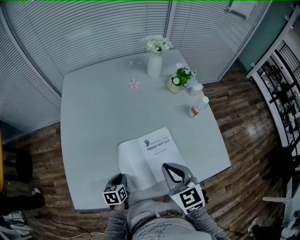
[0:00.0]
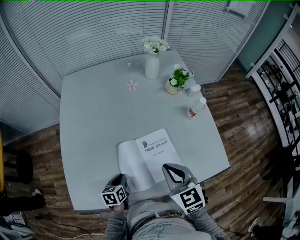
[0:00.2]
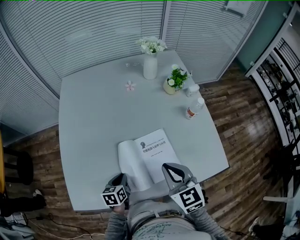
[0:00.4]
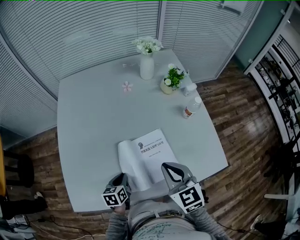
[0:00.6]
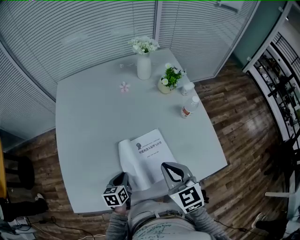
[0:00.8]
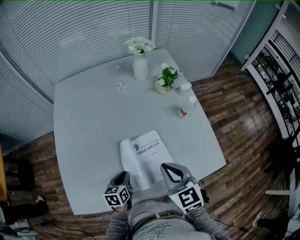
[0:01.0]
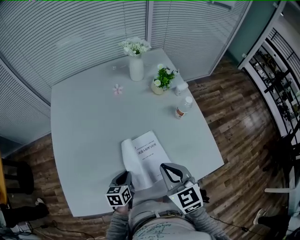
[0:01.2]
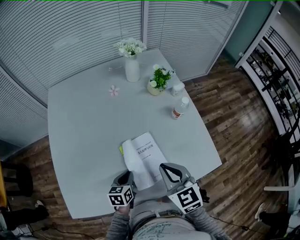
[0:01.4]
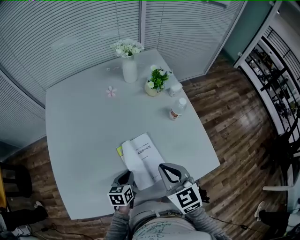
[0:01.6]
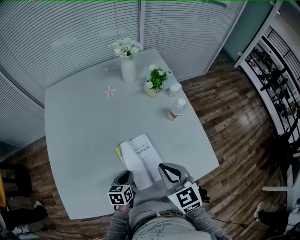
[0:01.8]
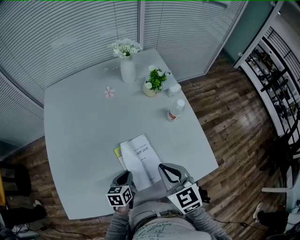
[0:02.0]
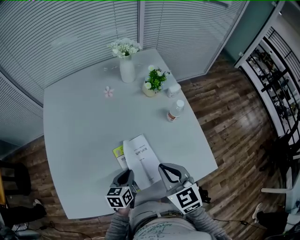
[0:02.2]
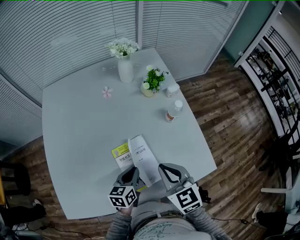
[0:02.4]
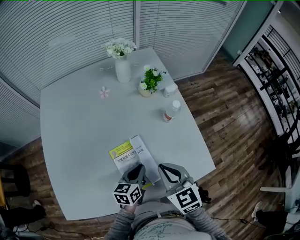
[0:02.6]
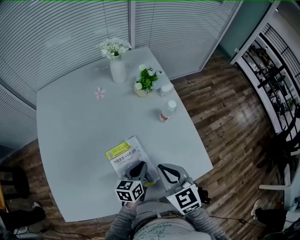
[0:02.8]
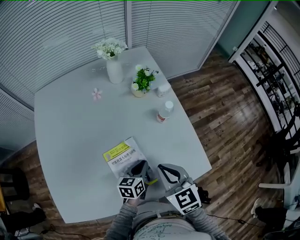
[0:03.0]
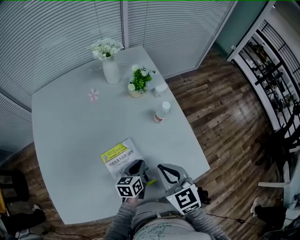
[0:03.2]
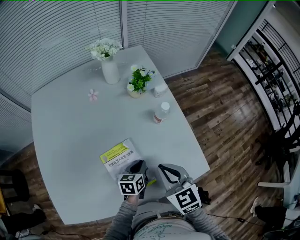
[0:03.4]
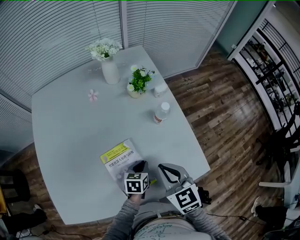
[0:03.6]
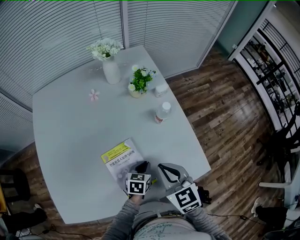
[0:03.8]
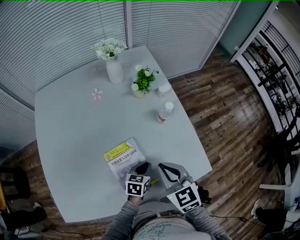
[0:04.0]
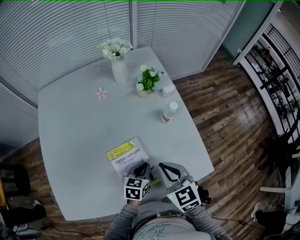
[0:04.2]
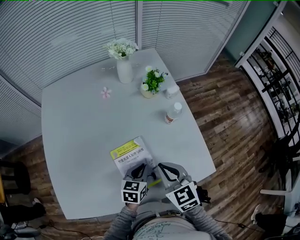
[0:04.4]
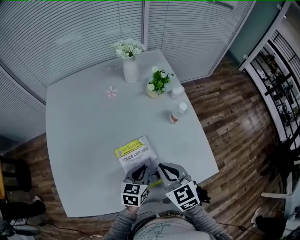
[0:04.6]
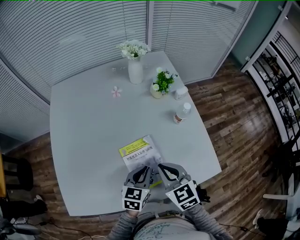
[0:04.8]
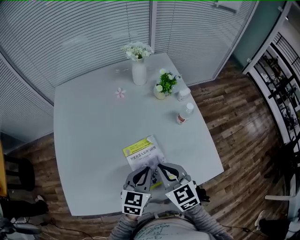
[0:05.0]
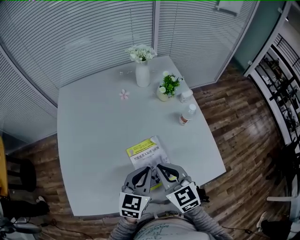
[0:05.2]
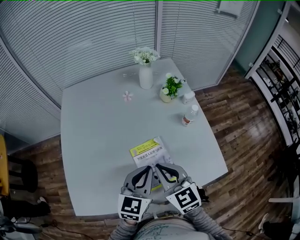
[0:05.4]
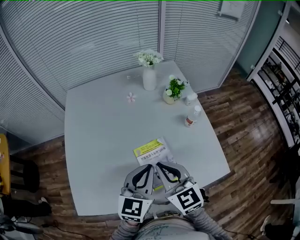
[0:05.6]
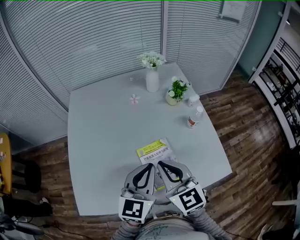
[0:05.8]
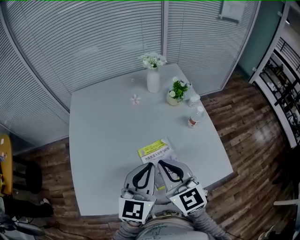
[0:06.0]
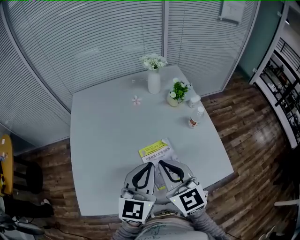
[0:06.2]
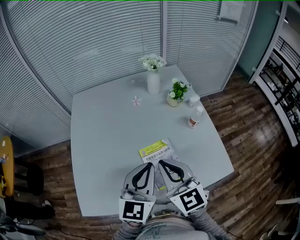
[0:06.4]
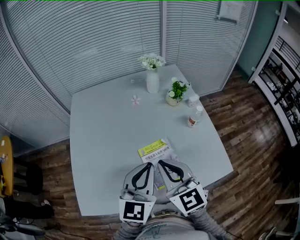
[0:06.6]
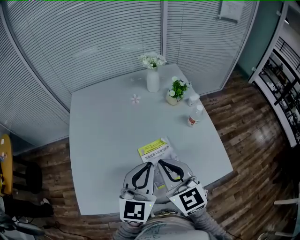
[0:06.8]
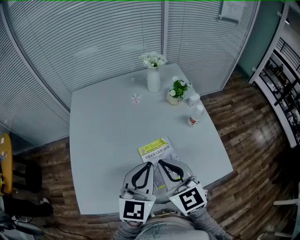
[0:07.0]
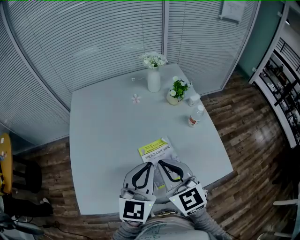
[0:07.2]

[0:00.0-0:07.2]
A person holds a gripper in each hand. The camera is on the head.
0.0 to 1.4 s: The left gripper shifts approximately 15 cm to the right. Meanwhile the right gripper travels to the right by some 10 cm.
1.4 to 2.8 s: The left gripper shifts about 15 cm to the right and forward. The right gripper shifts approximately 5 cm to the right.
4.4 to 5.8 s: The right gripper heads to the left and upward, covering some 15 cm. Meanwhile the left gripper heads upward and to the left, covering approximately 25 cm, and turns by approximately 30 degrees.
5.8 to 7.2 s: The grippers move only a little.

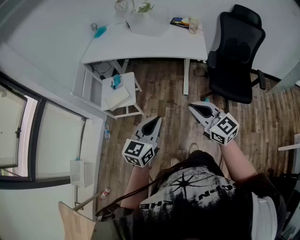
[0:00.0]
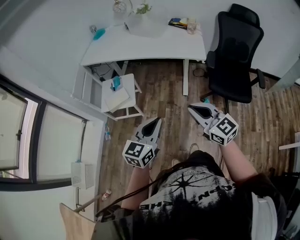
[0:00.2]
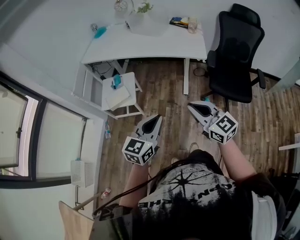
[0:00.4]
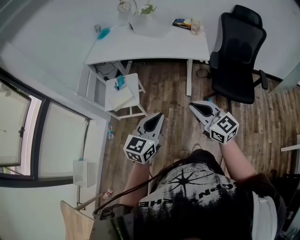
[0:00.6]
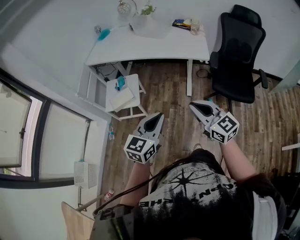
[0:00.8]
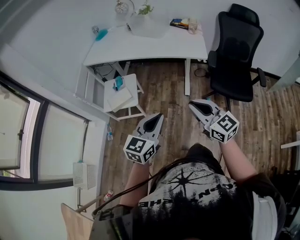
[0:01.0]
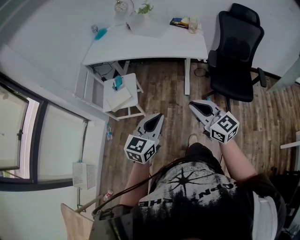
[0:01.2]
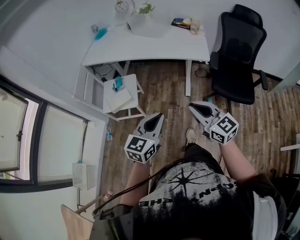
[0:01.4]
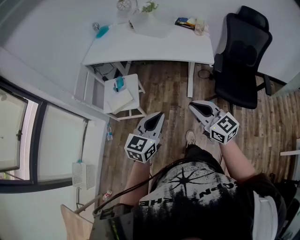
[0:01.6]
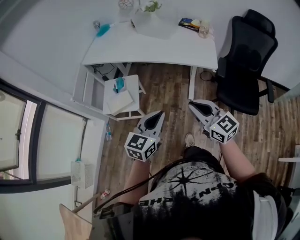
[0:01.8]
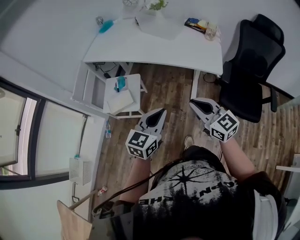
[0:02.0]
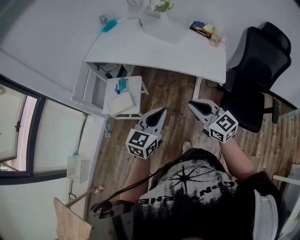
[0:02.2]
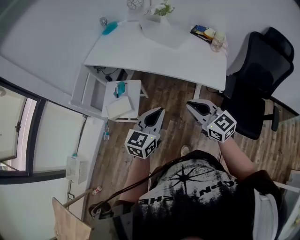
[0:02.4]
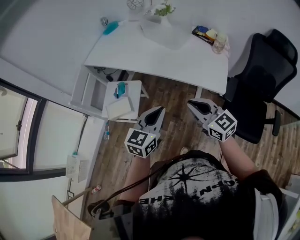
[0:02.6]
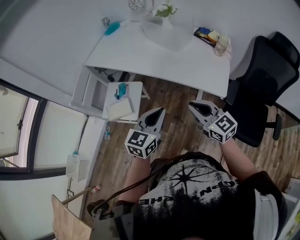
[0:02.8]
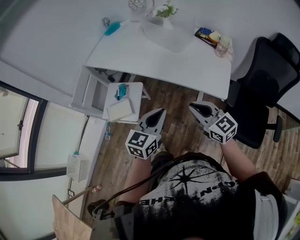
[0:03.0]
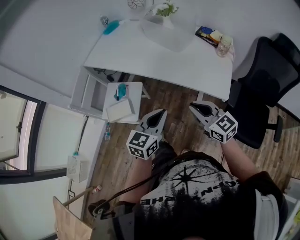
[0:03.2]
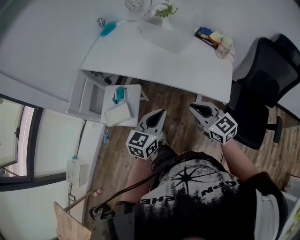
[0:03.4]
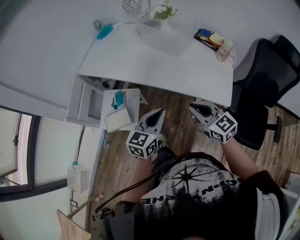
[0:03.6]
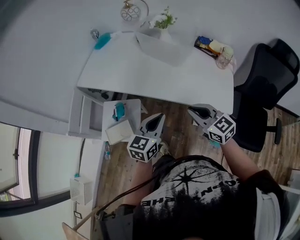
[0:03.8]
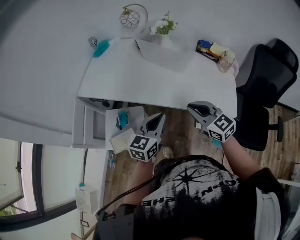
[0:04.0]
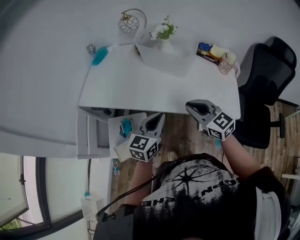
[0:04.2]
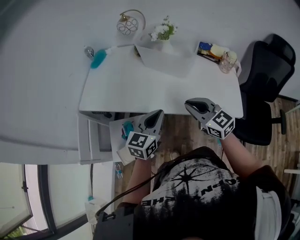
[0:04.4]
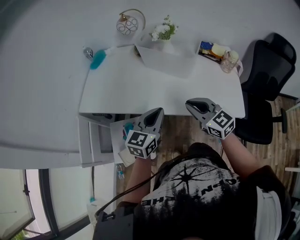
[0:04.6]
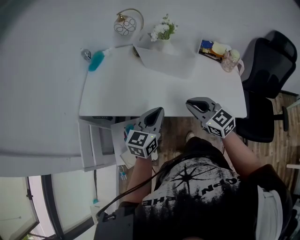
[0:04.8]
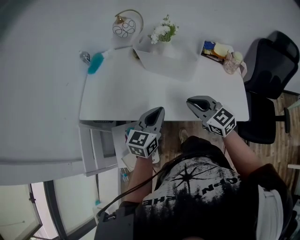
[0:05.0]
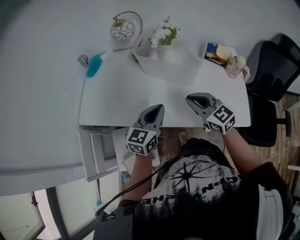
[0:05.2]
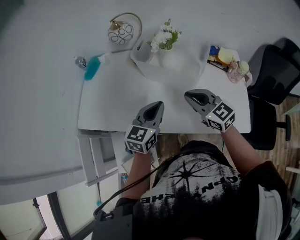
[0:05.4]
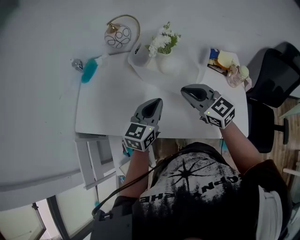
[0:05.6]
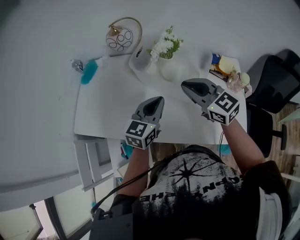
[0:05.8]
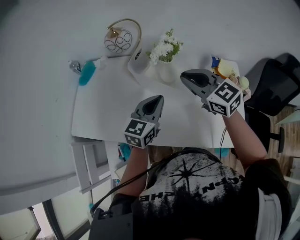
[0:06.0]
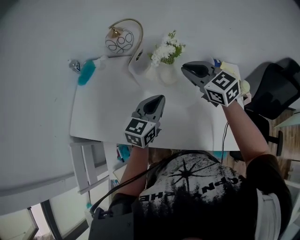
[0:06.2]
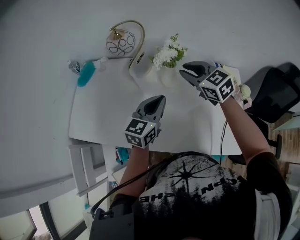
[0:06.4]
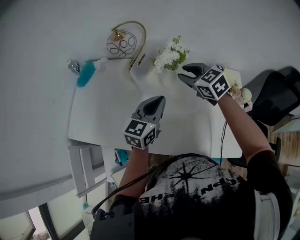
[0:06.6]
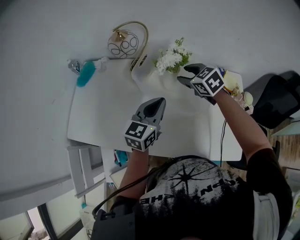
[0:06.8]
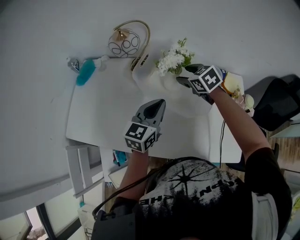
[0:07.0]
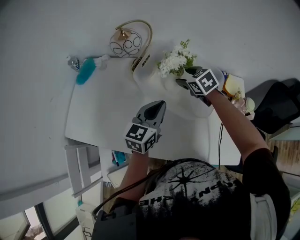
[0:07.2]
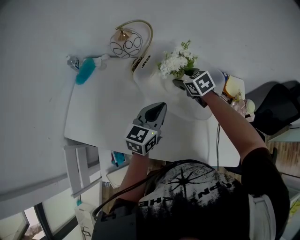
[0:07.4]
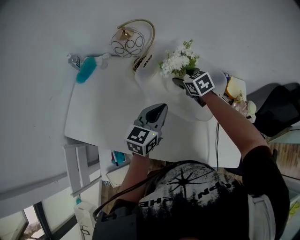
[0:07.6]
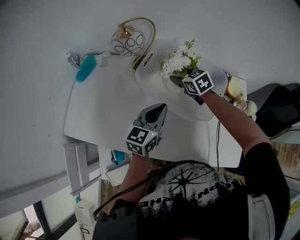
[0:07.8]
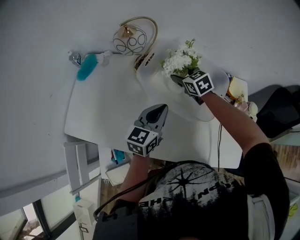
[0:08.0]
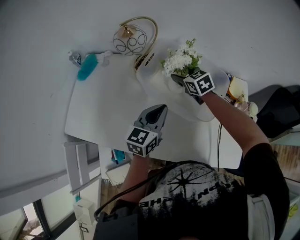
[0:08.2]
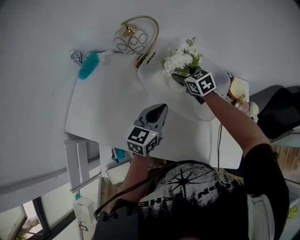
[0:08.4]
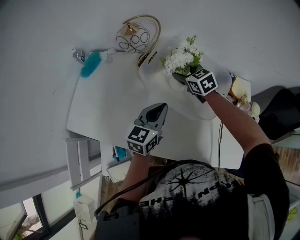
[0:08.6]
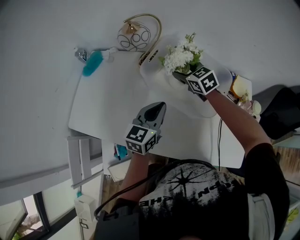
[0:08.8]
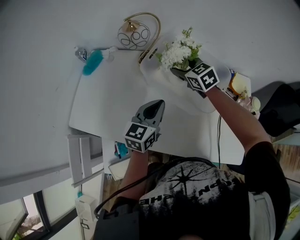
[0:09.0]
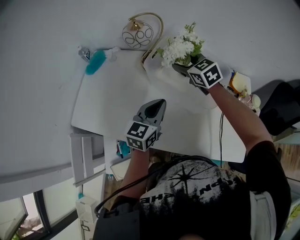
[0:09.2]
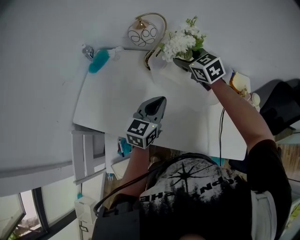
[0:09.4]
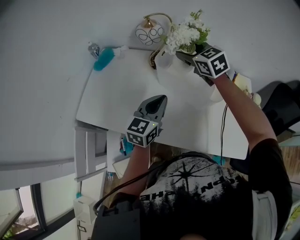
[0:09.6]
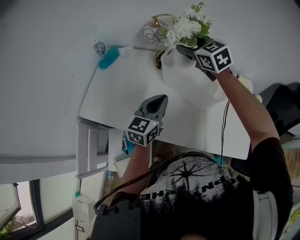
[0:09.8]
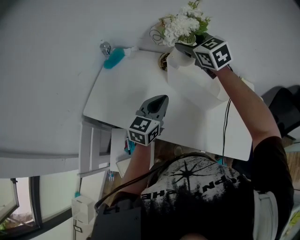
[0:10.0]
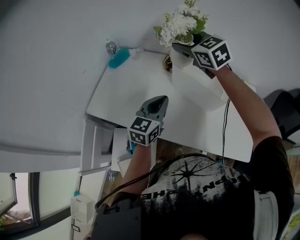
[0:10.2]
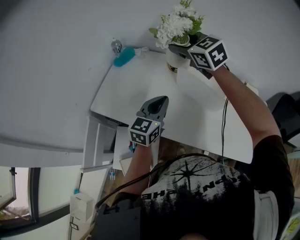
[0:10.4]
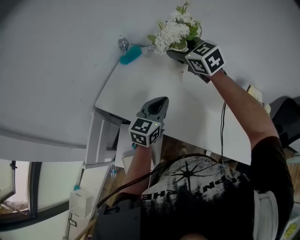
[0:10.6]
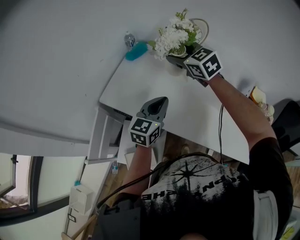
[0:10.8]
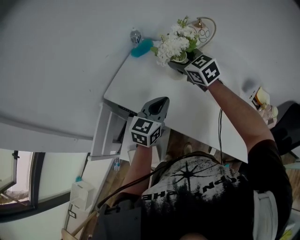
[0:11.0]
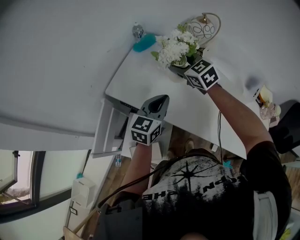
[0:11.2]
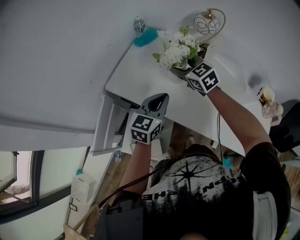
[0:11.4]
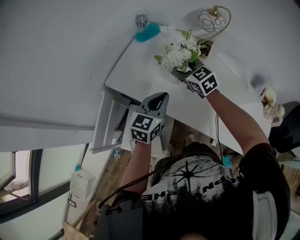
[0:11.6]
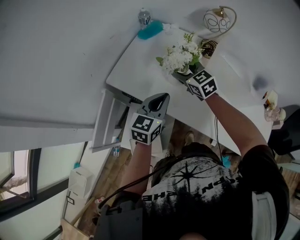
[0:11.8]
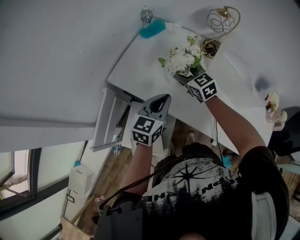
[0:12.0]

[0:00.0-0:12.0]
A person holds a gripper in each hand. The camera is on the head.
0.0 to 1.6 s: The two grippers go some 5 cm forward.
1.6 to 3.0 s: The left gripper heads forward and to the right, covering roughly 25 cm; the right gripper travels forward by approximately 25 cm.
3.0 to 4.4 s: The two grippers go some 25 cm forward and to the left.
4.4 to 6.0 s: Both grippers move forward, approximately 25 cm.
6.0 to 7.6 s: The left gripper shifts approximately 5 cm forward; the right gripper moves downward and forward, approximately 25 cm, turns by about 30 degrees, and opens.
7.6 to 9.0 s: The right gripper is displaced upward by approximately 5 cm.
9.0 to 10.4 s: The left gripper heads to the left, backward and upward, covering approximately 15 cm; the right gripper shifts roughly 30 cm upward and to the left.
10.4 to 12.0 s: The right gripper heads downward and to the left, covering approximately 30 cm. The left gripper shifts some 15 cm to the left and downward.

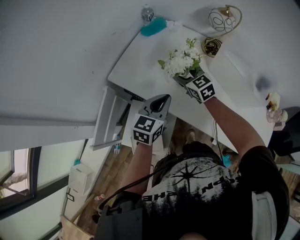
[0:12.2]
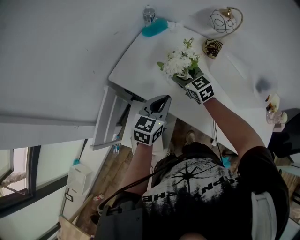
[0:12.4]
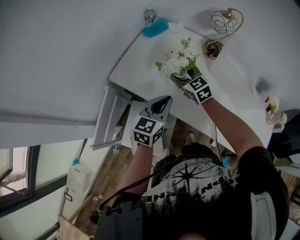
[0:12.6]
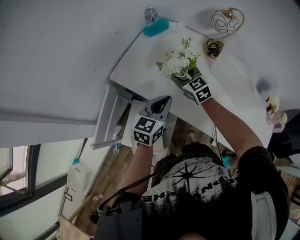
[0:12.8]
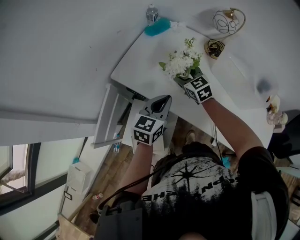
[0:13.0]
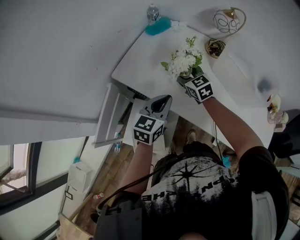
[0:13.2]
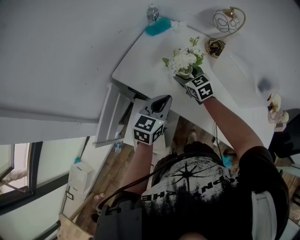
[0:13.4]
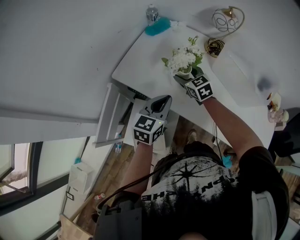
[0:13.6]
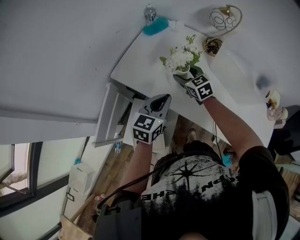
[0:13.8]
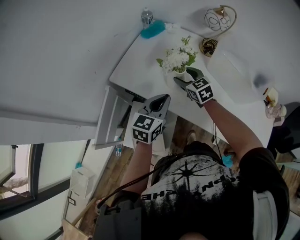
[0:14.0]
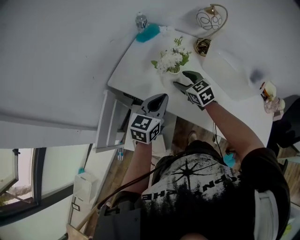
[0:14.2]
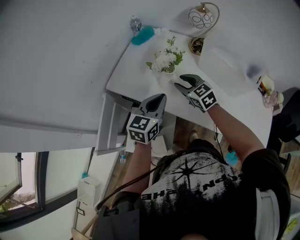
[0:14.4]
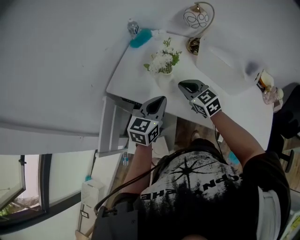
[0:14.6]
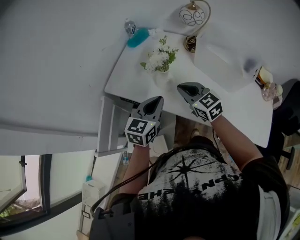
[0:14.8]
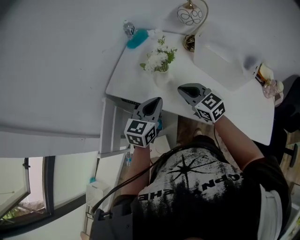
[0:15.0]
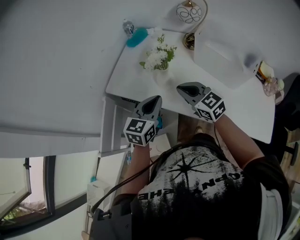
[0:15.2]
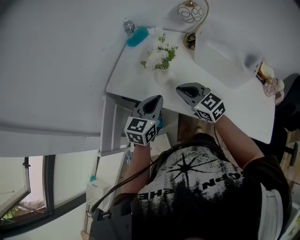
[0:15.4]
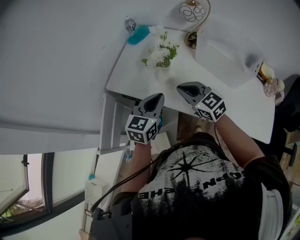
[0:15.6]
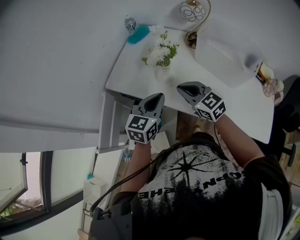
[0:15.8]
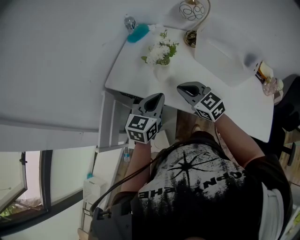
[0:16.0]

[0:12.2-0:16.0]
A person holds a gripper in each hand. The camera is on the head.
12.2 to 13.4 s: The grippers make only small movements.
13.4 to 14.8 s: The right gripper travels backward, upward and to the right by about 15 cm, and closes its fingers. Meanwhile the left gripper ends up some 5 cm from where it was.
14.8 to 16.0 s: The grippers move only a little.

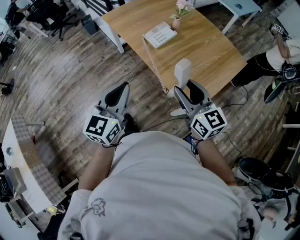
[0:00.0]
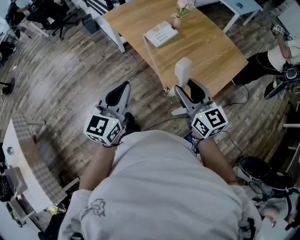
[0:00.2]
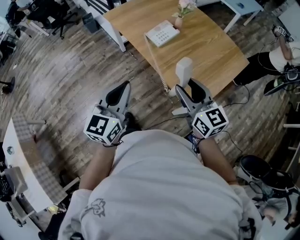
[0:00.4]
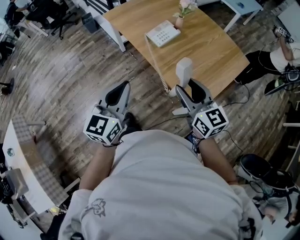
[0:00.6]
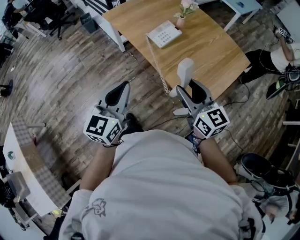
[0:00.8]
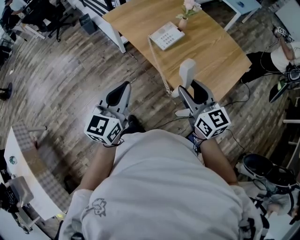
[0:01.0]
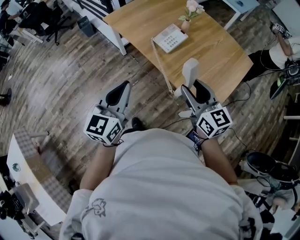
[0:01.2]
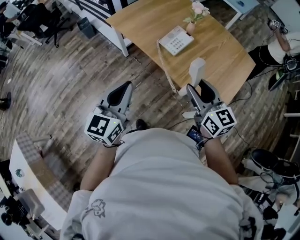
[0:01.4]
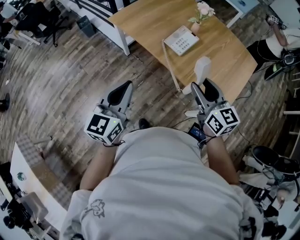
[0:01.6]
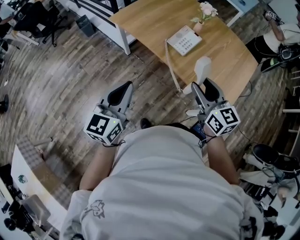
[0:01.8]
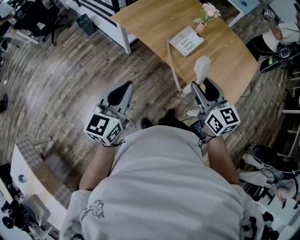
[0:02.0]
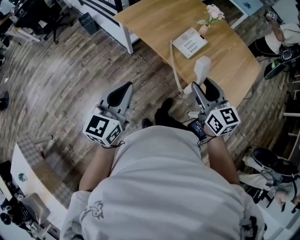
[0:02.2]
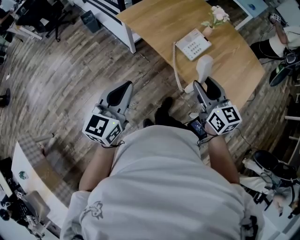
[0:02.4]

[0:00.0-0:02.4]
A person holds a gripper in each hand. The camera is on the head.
0.0 to 1.2 s: Both grippers travel together to the left and forward, approximately 10 cm.
1.2 to 2.4 s: The two grippers go some 15 cm to the left and forward.
